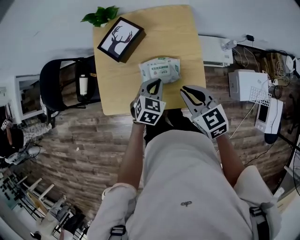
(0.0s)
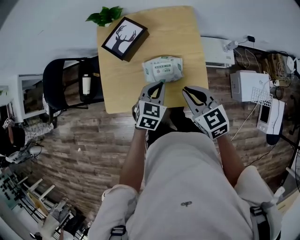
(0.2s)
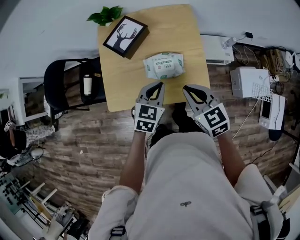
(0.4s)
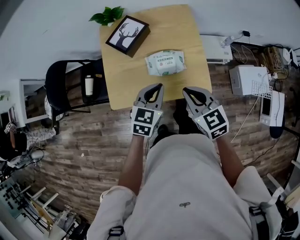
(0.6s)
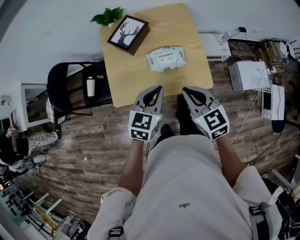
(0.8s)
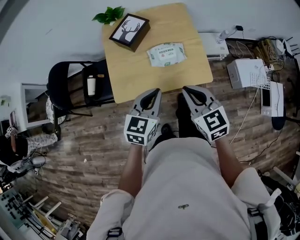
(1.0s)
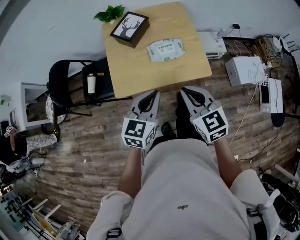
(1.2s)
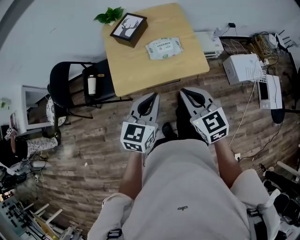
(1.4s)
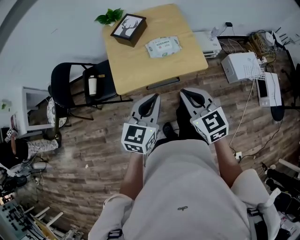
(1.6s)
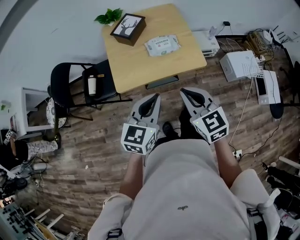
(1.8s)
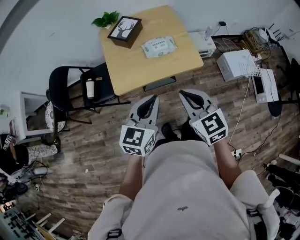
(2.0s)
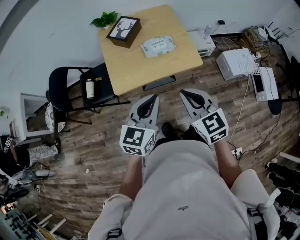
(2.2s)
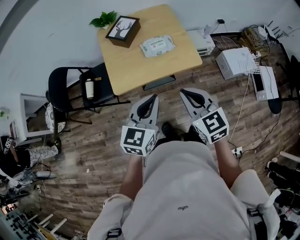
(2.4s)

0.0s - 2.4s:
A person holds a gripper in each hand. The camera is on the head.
0.0s - 1.2s: The right gripper is displaced backward and to the left by approximately 20 cm, while the left gripper moves backward, upward and to the left, some 30 cm, and turns by approximately 30 degrees.
1.2s - 2.4s: The grippers both shift backward by approximately 10 cm.

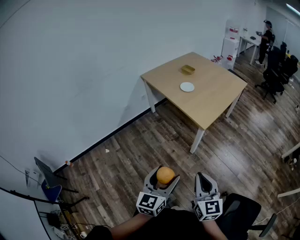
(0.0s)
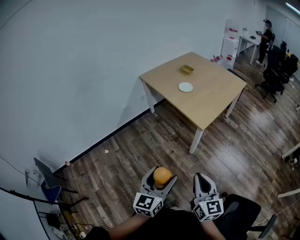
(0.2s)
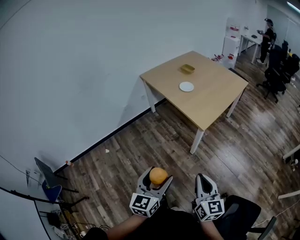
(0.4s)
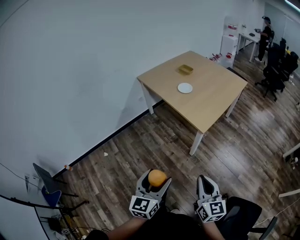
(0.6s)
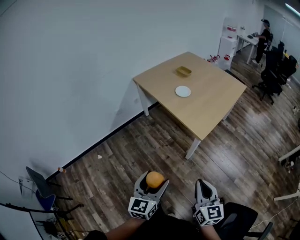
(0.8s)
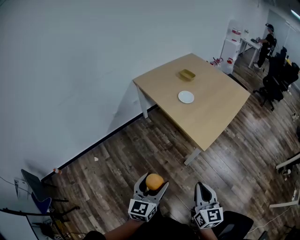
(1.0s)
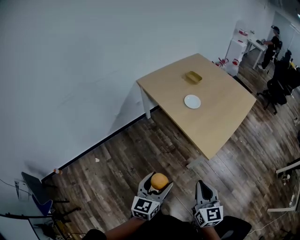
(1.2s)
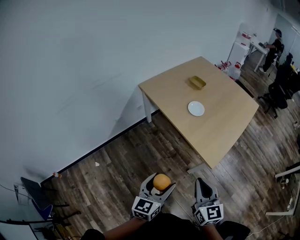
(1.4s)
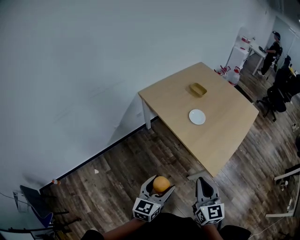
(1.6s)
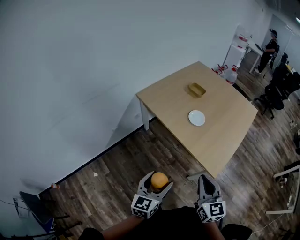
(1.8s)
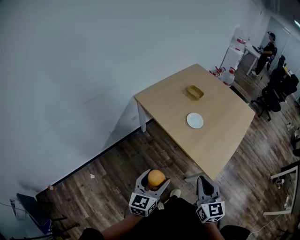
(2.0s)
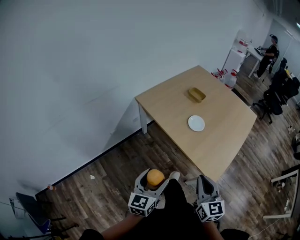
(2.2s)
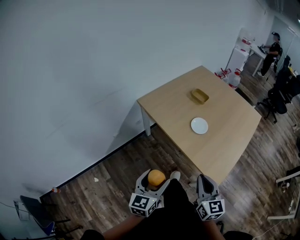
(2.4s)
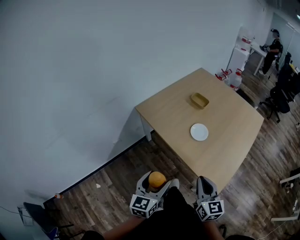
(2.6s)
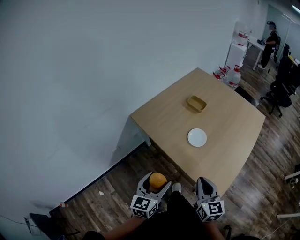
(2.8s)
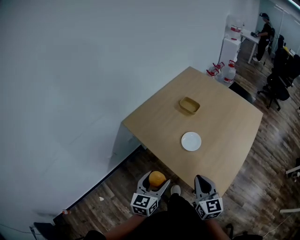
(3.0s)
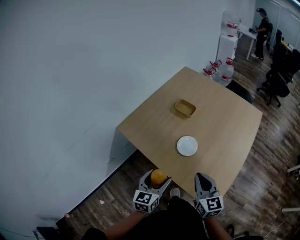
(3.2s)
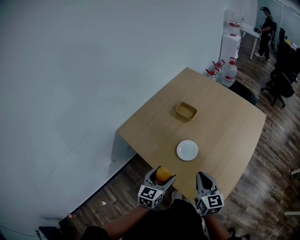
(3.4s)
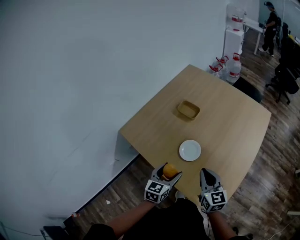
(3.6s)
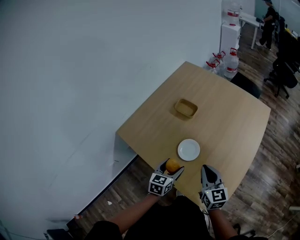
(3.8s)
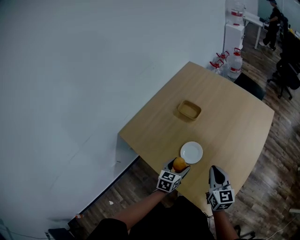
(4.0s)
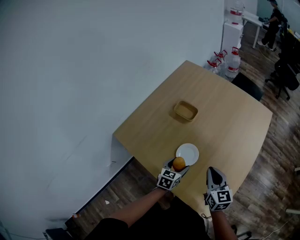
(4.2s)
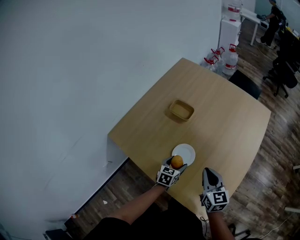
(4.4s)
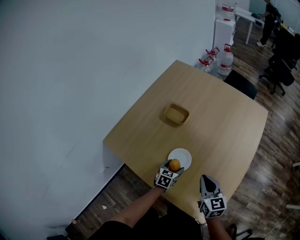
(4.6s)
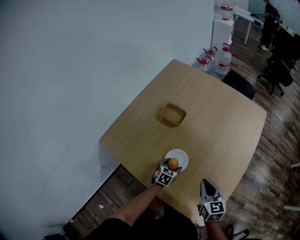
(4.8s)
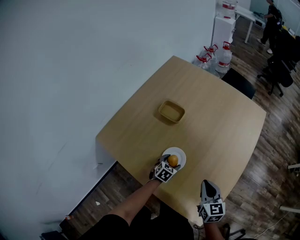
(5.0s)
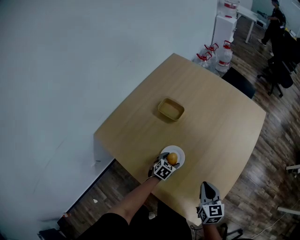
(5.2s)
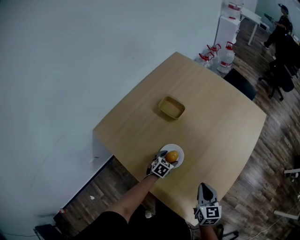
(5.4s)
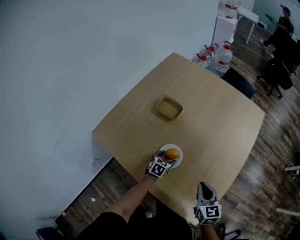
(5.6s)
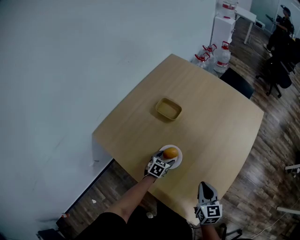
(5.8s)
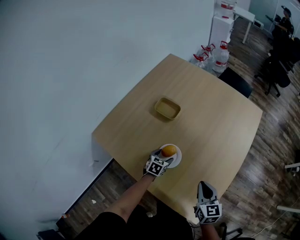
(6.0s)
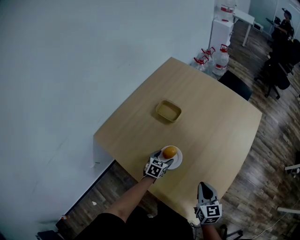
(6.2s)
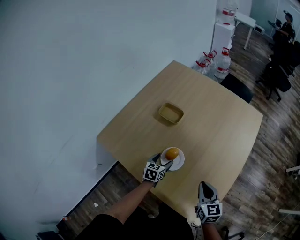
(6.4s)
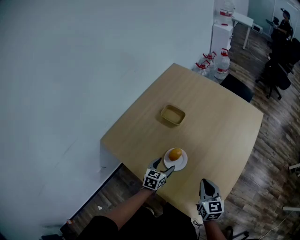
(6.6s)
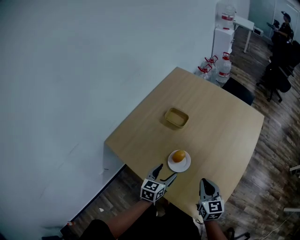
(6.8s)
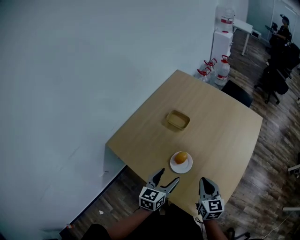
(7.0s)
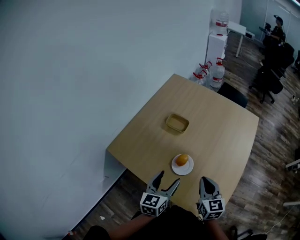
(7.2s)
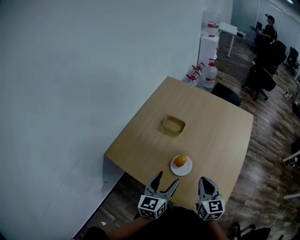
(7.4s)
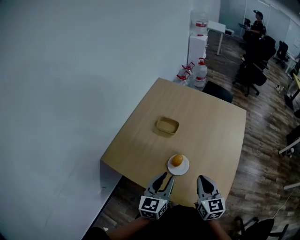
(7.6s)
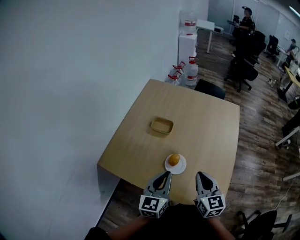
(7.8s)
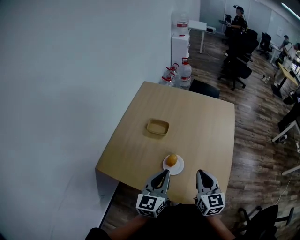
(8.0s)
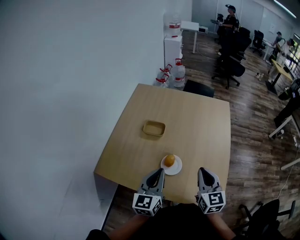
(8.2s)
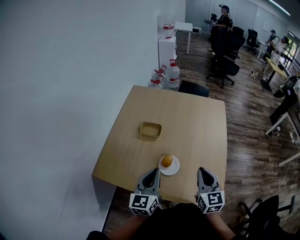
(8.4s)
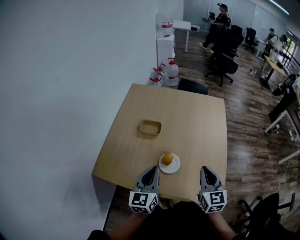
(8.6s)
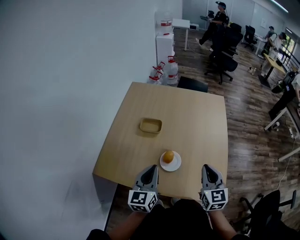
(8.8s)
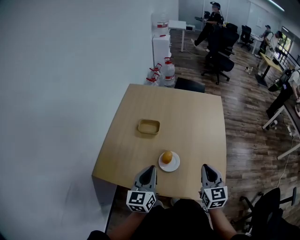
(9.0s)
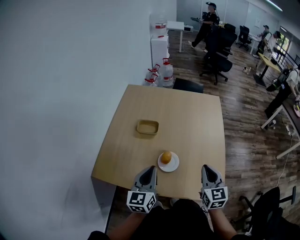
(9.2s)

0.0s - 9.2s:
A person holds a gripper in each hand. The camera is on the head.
0.0s - 1.6s: The grippers both shift forward by approximately 35 cm.
1.6s - 3.0s: Both grippers move forward, approximately 25 cm.
3.0s - 4.6s: The right gripper shifts roughly 20 cm forward, to the right and downward. Meanwhile the left gripper travels forward, downward and to the right by about 40 cm, and turns by approximately 30 degrees.
4.6s - 6.2s: The right gripper moves to the right, approximately 5 cm.
6.2s - 7.6s: The right gripper heads upward and to the left, covering some 15 cm, while the left gripper goes approximately 30 cm upward, tips its fingers upward by some 30 degrees, and closes up.
7.6s - 9.2s: The right gripper moves roughly 5 cm, and rotates about 20 degrees. The left gripper closes up.

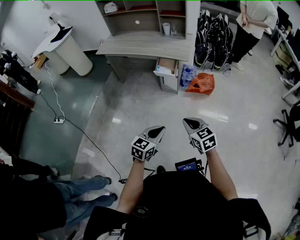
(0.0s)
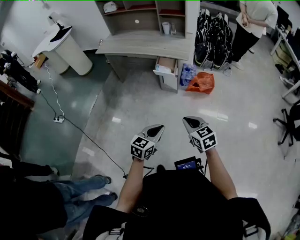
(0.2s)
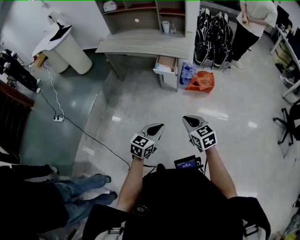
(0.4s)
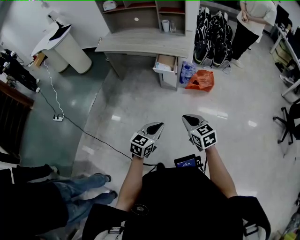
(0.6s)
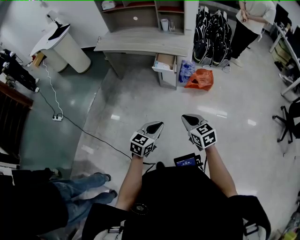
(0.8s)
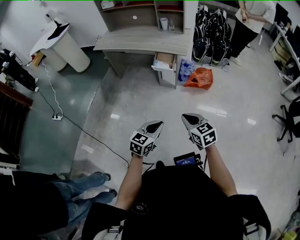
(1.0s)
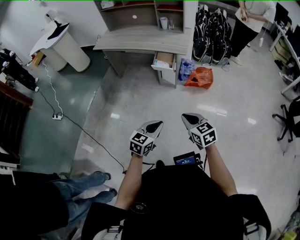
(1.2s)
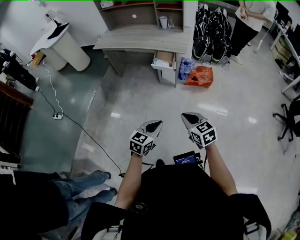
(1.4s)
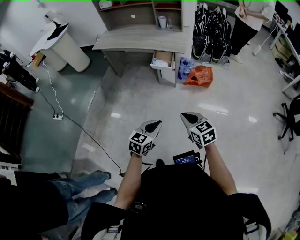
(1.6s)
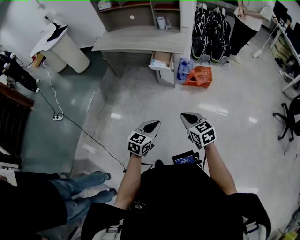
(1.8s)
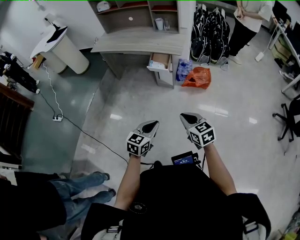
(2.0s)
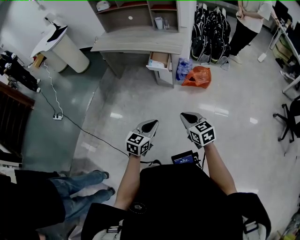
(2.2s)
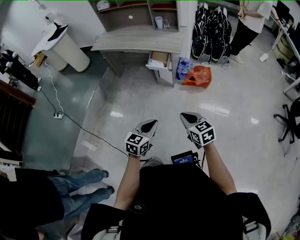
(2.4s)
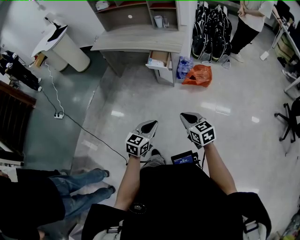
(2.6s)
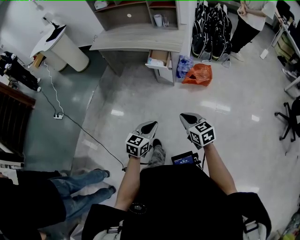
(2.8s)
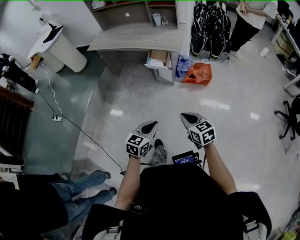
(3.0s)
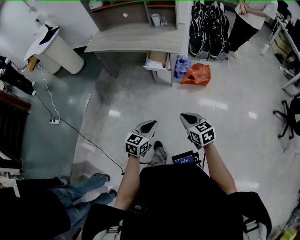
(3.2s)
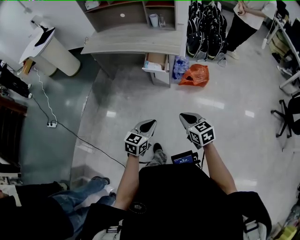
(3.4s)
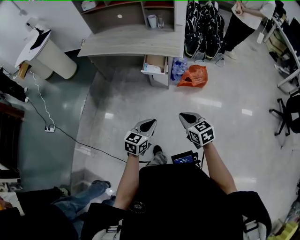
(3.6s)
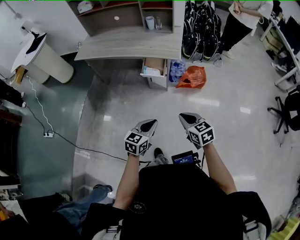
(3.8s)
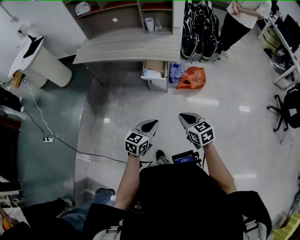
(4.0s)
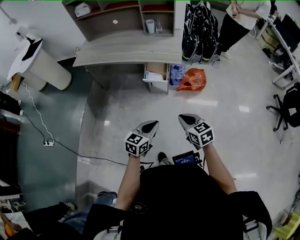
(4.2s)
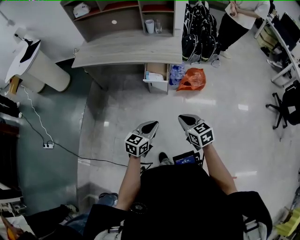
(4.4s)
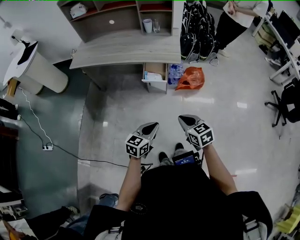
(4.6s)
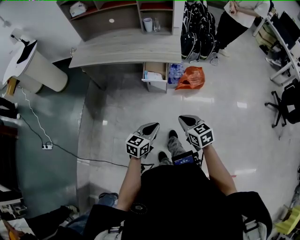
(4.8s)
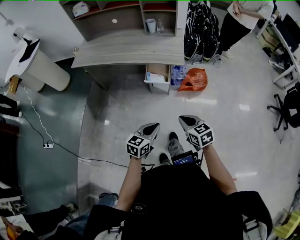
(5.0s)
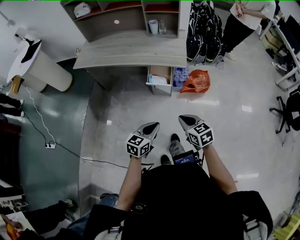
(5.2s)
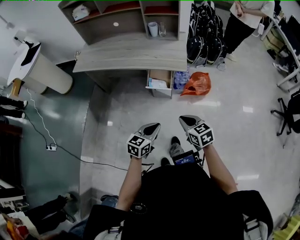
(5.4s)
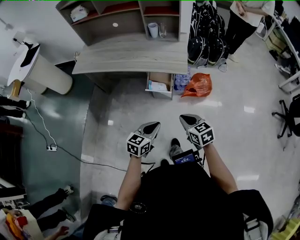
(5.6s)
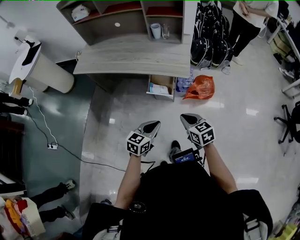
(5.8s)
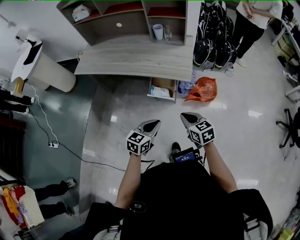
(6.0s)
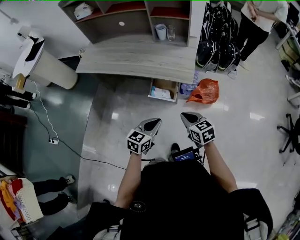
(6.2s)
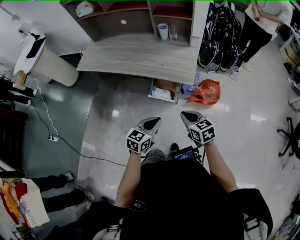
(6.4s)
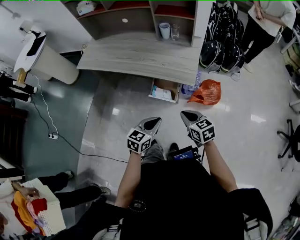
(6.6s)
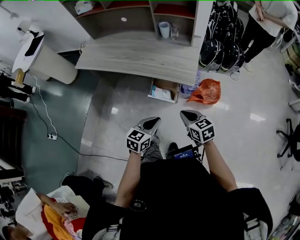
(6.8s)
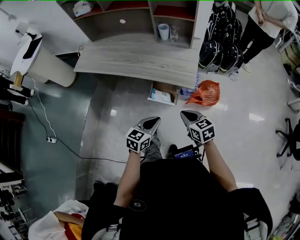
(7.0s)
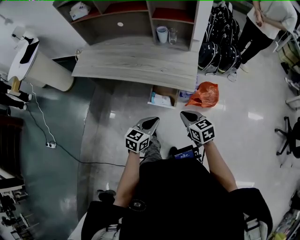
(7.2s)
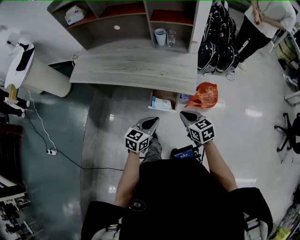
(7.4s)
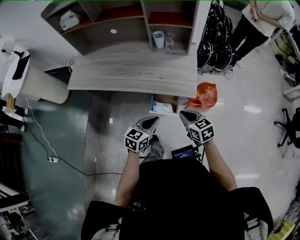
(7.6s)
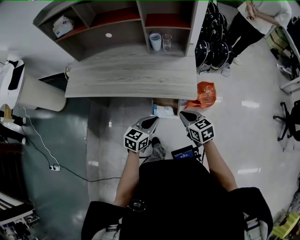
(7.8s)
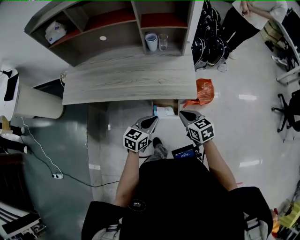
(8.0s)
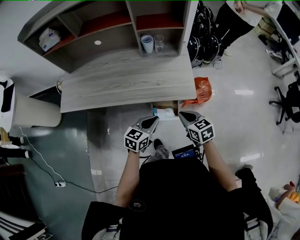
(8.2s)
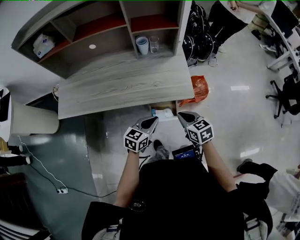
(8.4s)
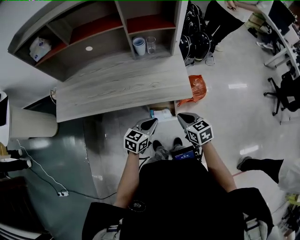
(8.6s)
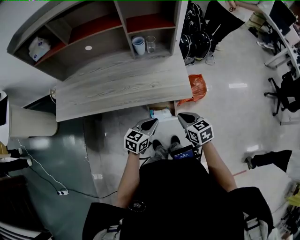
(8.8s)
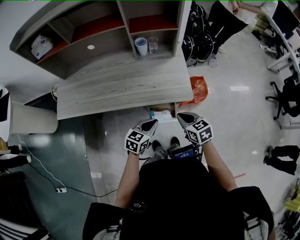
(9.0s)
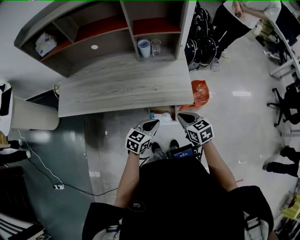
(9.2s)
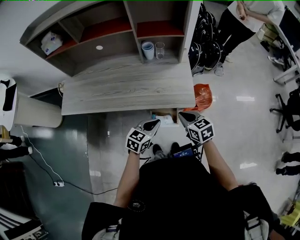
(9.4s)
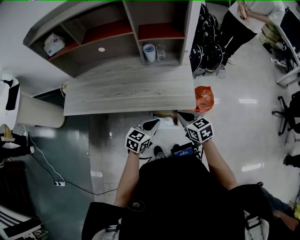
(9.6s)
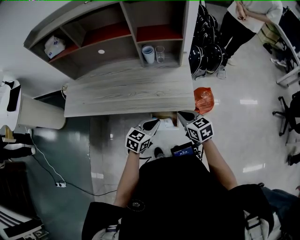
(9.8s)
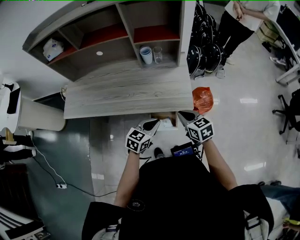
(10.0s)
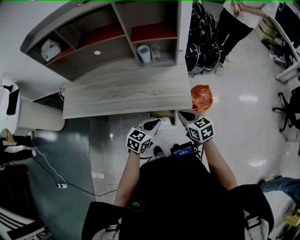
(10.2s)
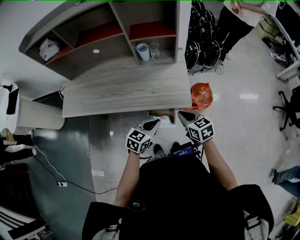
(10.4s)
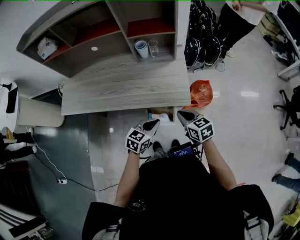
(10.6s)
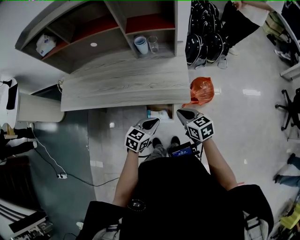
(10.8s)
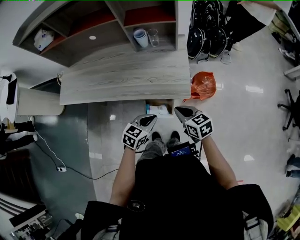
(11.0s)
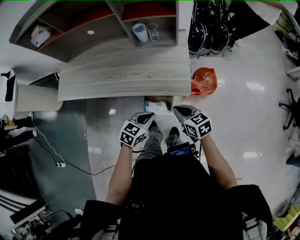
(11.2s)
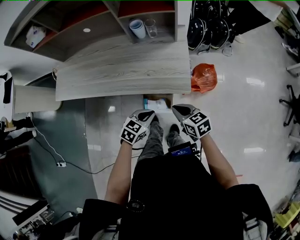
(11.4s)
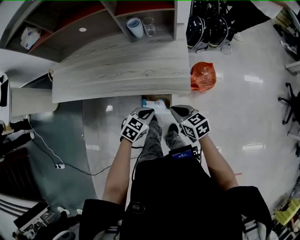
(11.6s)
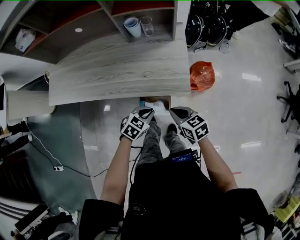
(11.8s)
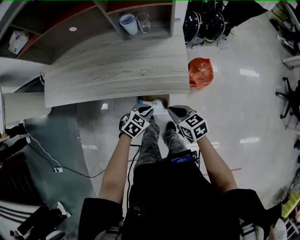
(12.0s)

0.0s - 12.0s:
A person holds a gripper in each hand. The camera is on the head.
0.0s - 1.6s: There are only small adjustments of the grippers.
1.6s - 3.0s: The right gripper ends up approximately 5 cm from where it was.
3.0s - 4.4s: The grippers both shift forward and to the left by roughly 20 cm.
4.4s - 6.0s: The two grippers go about 20 cm forward.
6.0s - 7.6s: The grippers both shift forward by some 15 cm.
7.6s - 9.0s: The left gripper heads forward, covering approximately 5 cm.
9.0s - 10.4s: The left gripper shifts by about 5 cm; the right gripper ends up roughly 5 cm from where it was.
10.4s - 12.0s: The right gripper travels downward by some 10 cm; the left gripper shifts approximately 15 cm downward, and turns by about 30 degrees.
